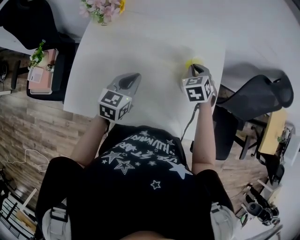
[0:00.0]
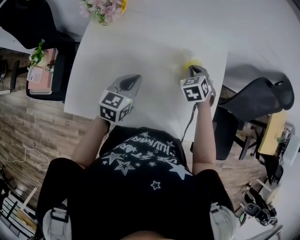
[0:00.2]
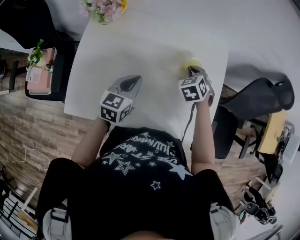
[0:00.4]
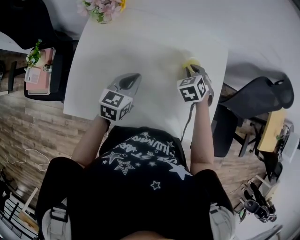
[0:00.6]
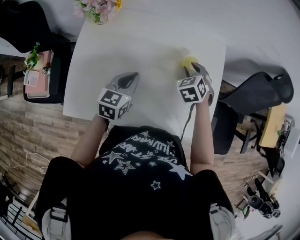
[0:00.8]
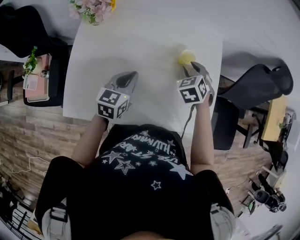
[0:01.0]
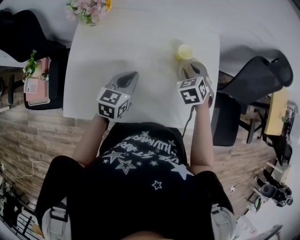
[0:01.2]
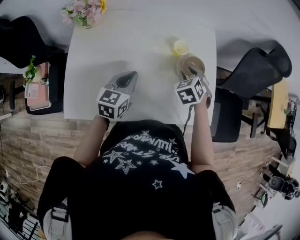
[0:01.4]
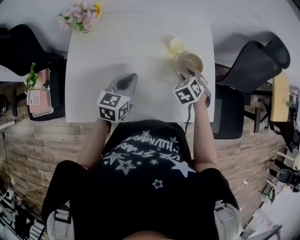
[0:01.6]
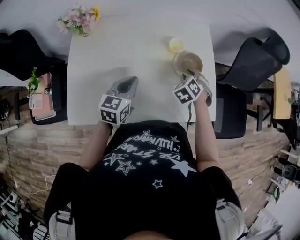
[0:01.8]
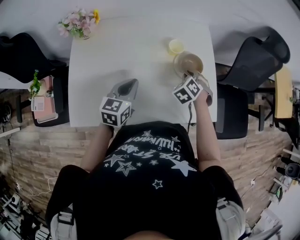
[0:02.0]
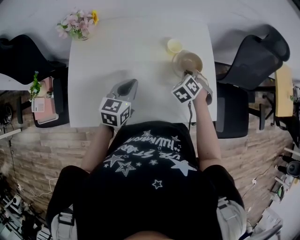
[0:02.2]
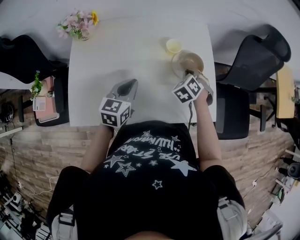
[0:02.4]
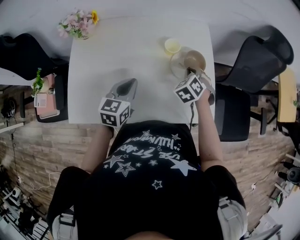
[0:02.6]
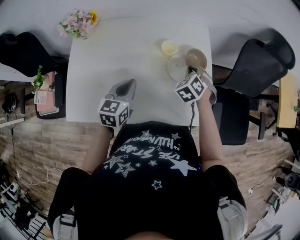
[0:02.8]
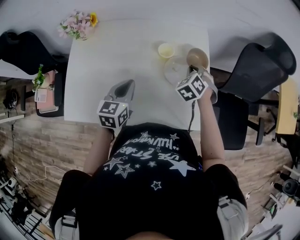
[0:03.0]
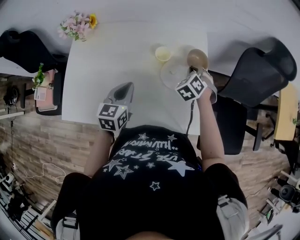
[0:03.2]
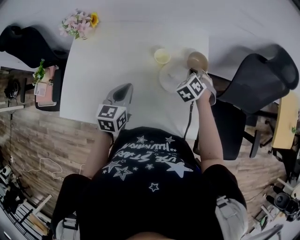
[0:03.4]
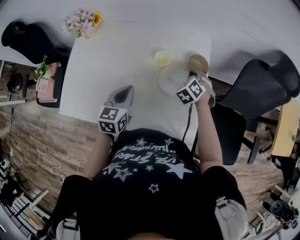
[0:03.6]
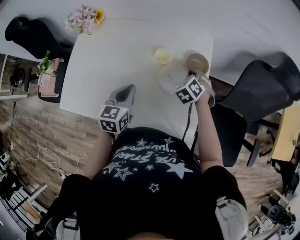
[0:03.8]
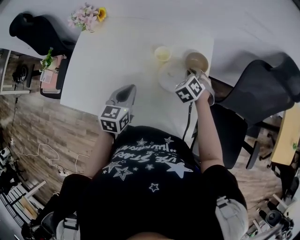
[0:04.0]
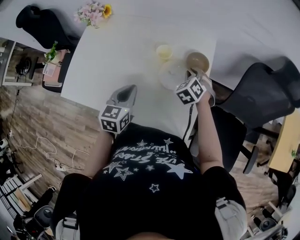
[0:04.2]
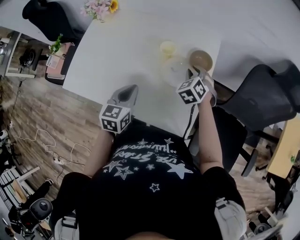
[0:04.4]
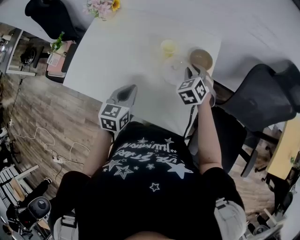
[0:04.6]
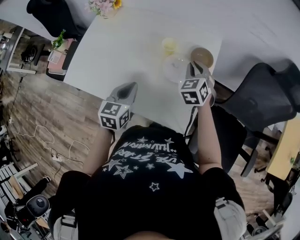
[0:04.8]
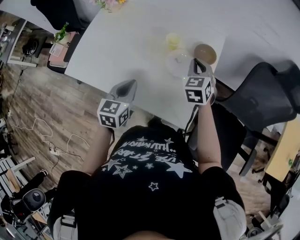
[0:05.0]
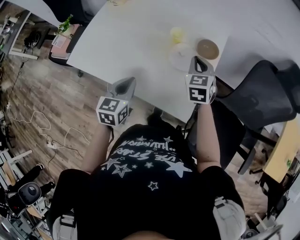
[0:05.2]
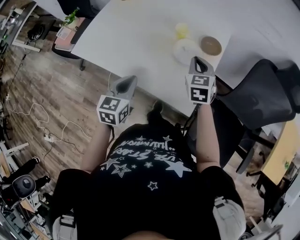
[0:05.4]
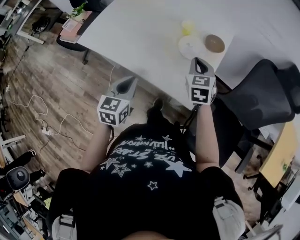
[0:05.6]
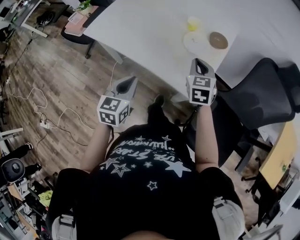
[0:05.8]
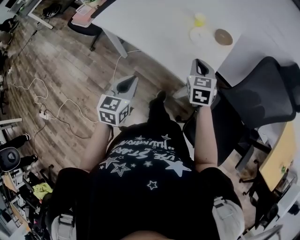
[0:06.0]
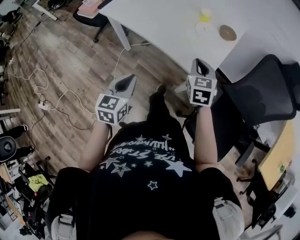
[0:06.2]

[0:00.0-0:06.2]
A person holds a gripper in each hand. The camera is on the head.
0:00.0 to 0:01.6: The right gripper travels backward, to the right and downward by some 10 cm, and opens its fingers.
0:01.6 to 0:03.2: The left gripper heads to the right, covering some 5 cm; the right gripper moves forward and to the right, approximately 10 cm, and closes its fingers.
0:03.2 to 0:04.6: The right gripper turns by about 20 degrees; the left gripper goes approximately 10 cm backward and to the right.
0:04.6 to 0:06.2: The two grippers go approximately 30 cm backward. The right gripper changes its angle by approximately 30 degrees, and closes up.

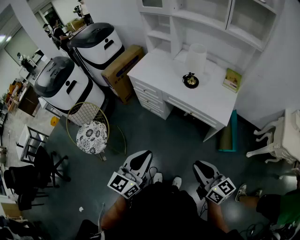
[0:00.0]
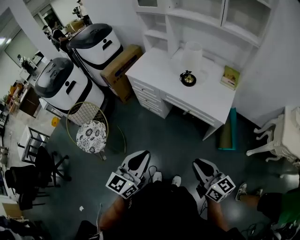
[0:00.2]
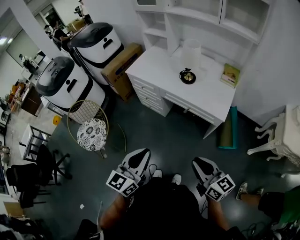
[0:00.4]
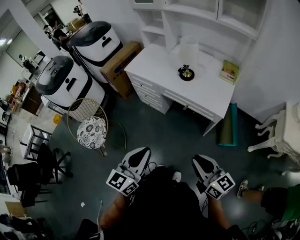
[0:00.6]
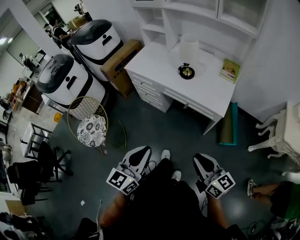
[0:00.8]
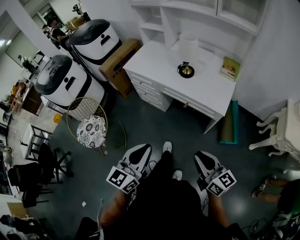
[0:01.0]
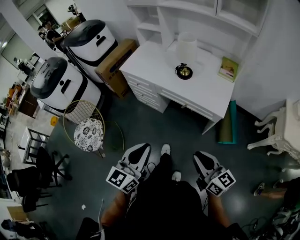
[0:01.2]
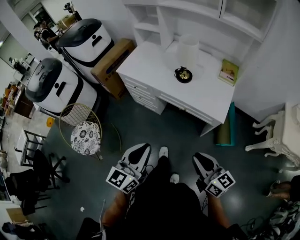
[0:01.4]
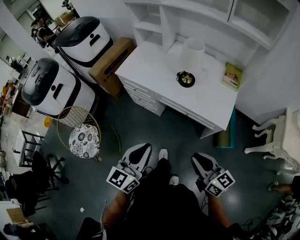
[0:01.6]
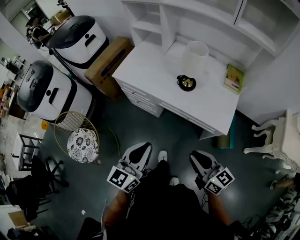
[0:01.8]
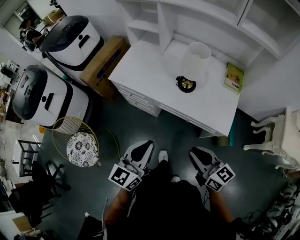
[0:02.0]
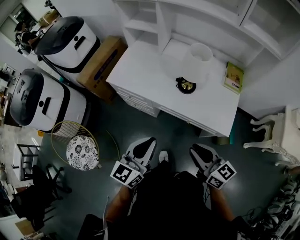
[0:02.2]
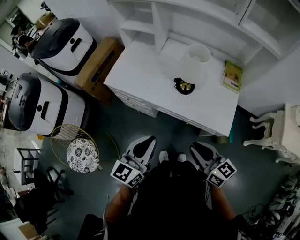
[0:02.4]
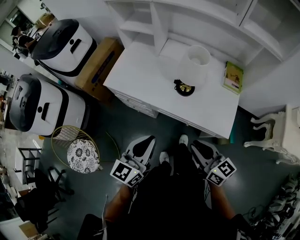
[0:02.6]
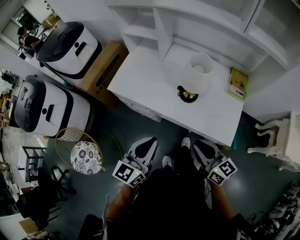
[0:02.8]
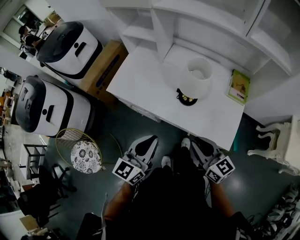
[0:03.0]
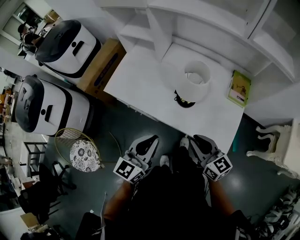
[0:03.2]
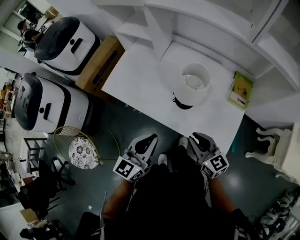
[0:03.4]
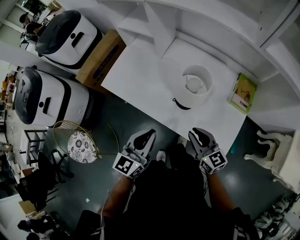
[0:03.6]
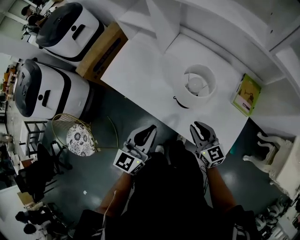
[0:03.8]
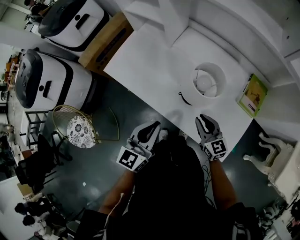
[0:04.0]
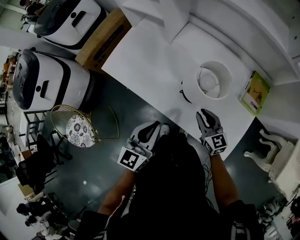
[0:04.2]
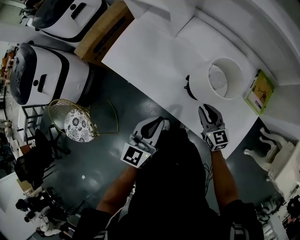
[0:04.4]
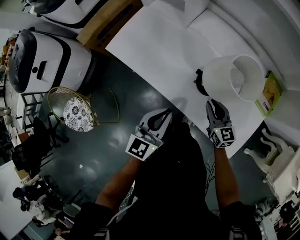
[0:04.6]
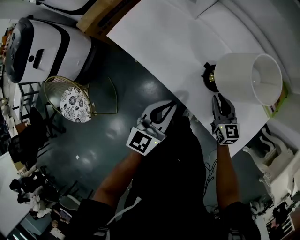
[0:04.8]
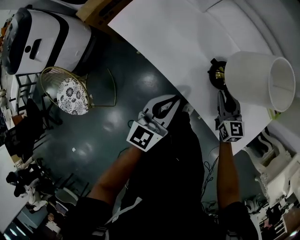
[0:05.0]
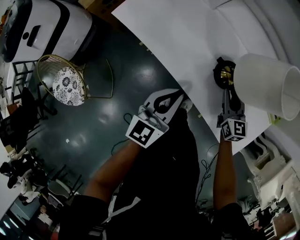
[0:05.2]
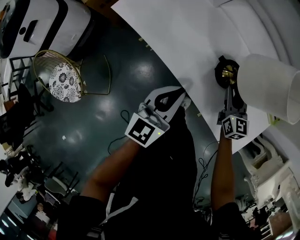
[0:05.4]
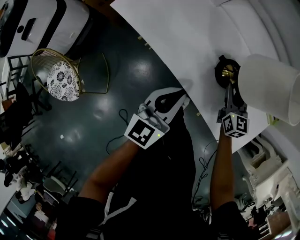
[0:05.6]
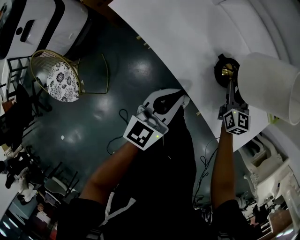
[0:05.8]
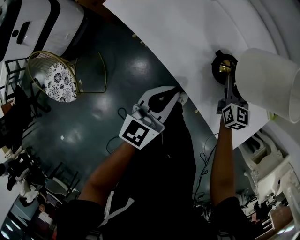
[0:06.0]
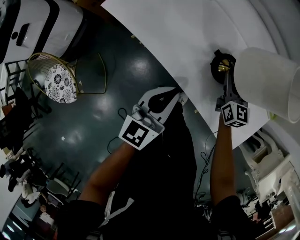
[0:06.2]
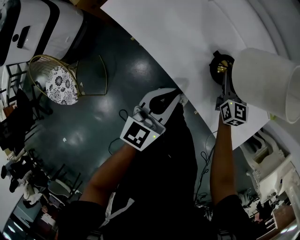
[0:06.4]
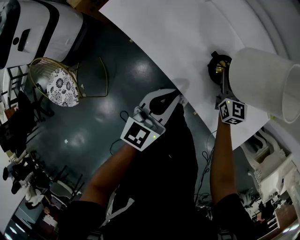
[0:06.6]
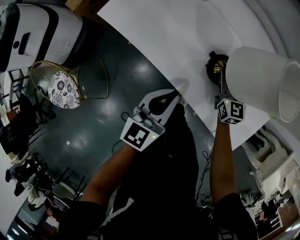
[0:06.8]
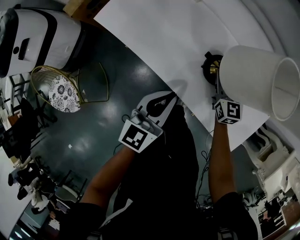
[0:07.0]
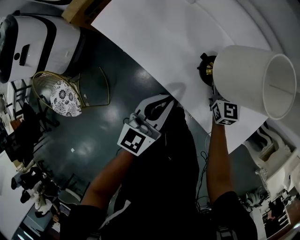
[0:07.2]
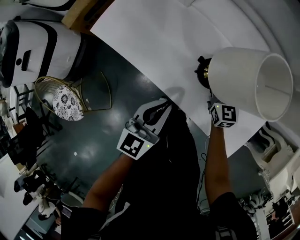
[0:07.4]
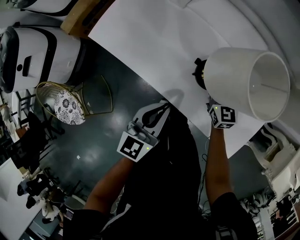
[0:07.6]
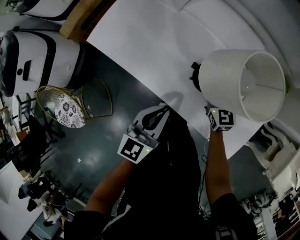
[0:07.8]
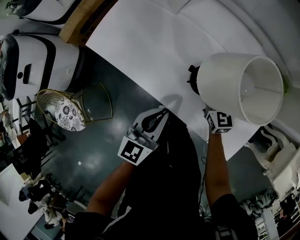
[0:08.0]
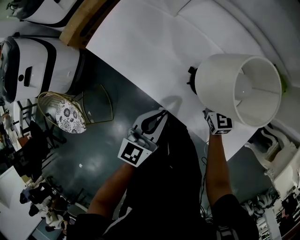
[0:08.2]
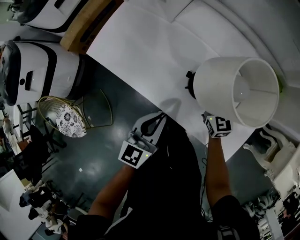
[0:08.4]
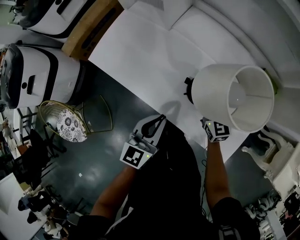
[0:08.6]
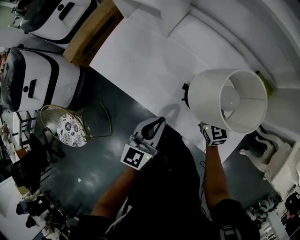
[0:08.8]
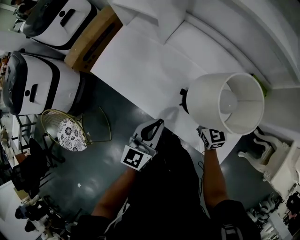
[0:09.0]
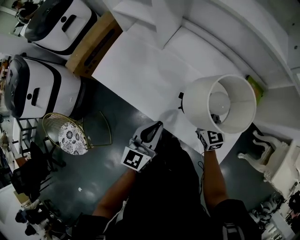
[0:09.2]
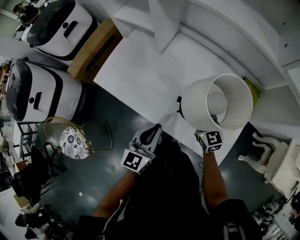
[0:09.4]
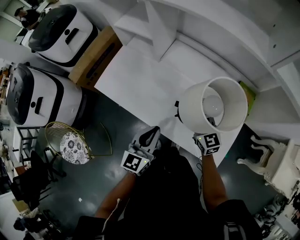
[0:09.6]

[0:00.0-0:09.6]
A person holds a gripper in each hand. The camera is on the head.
0:00.0 to 0:01.6: The grippers both shift forward by approximately 10 cm.
0:01.6 to 0:03.2: Both grippers move forward, approximately 25 cm.
0:03.2 to 0:04.8: The right gripper moves downward and forward, about 25 cm, while the left gripper moves downward and forward, roughly 15 cm.
0:04.8 to 0:06.4: The right gripper travels forward by about 10 cm.
0:06.4 to 0:08.0: There are only small adjustments of the grippers.
0:08.0 to 0:09.6: Both grippers move upward, some 10 cm.

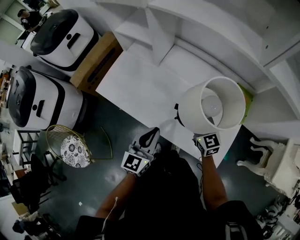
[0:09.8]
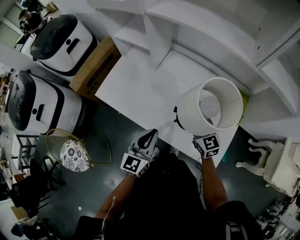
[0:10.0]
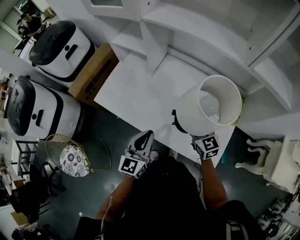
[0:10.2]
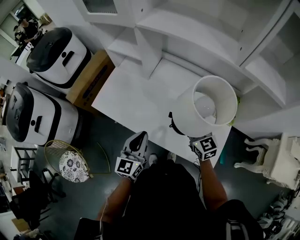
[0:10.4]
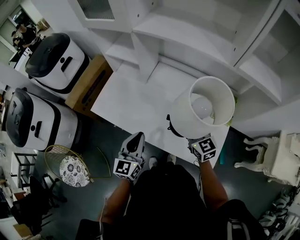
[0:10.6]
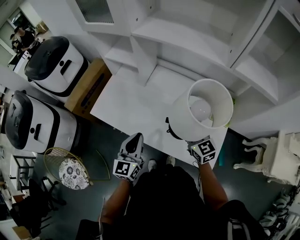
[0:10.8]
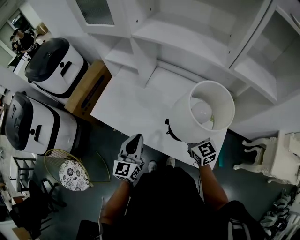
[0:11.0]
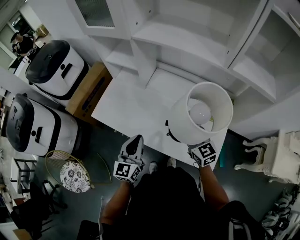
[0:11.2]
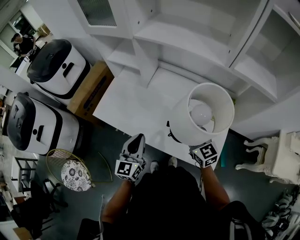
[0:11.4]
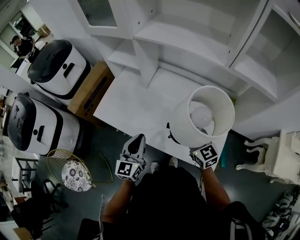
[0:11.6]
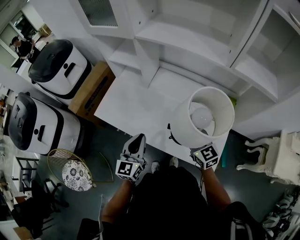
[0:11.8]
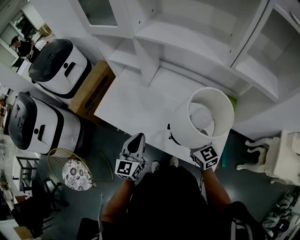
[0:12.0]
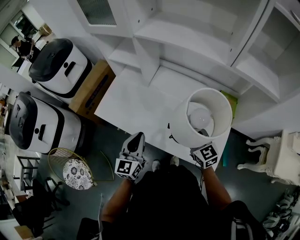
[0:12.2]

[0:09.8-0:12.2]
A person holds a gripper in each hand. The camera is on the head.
0:09.8 to 0:11.0: The right gripper goes about 5 cm upward. Meanwhile the left gripper shifts by approximately 5 cm.
0:11.0 to 0:12.2: The grippers stay close to where they were, moving slightly.

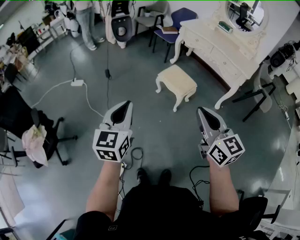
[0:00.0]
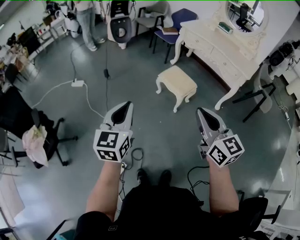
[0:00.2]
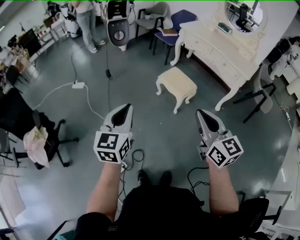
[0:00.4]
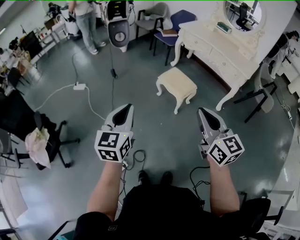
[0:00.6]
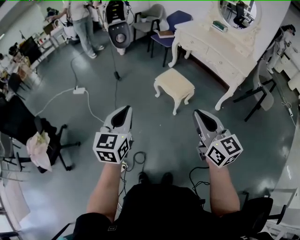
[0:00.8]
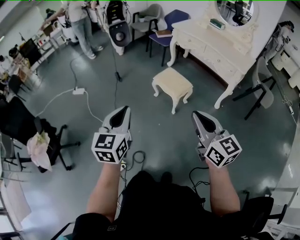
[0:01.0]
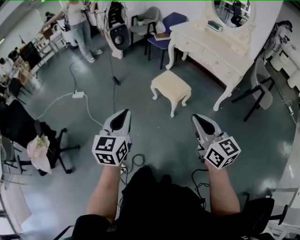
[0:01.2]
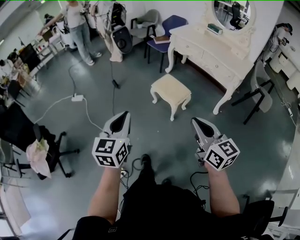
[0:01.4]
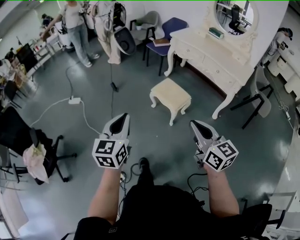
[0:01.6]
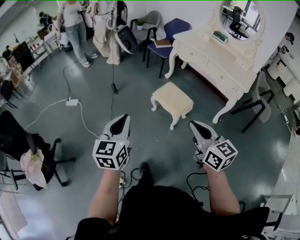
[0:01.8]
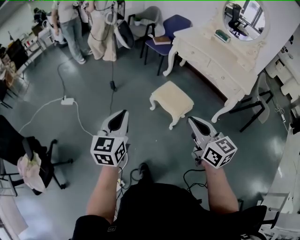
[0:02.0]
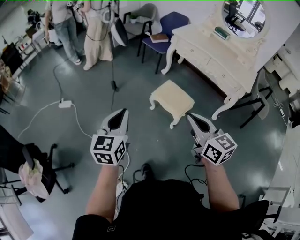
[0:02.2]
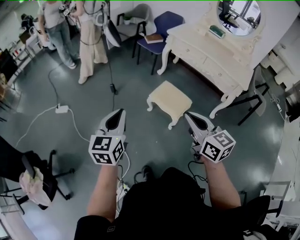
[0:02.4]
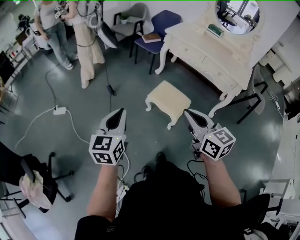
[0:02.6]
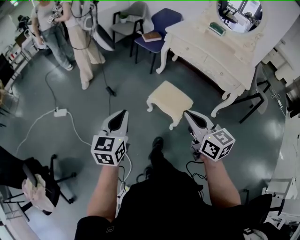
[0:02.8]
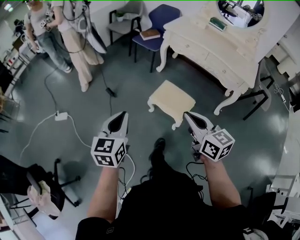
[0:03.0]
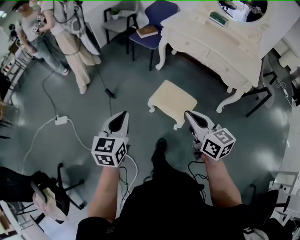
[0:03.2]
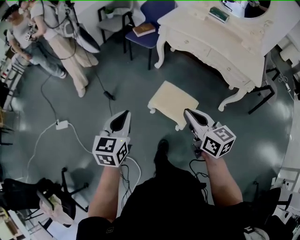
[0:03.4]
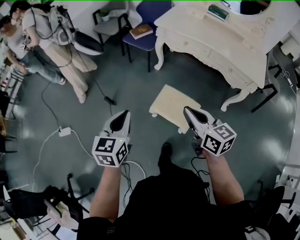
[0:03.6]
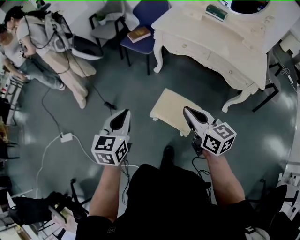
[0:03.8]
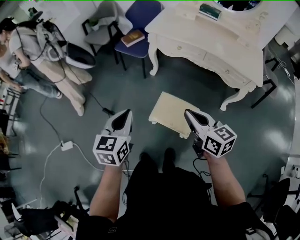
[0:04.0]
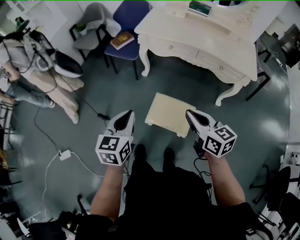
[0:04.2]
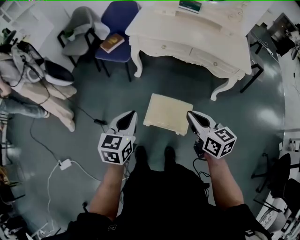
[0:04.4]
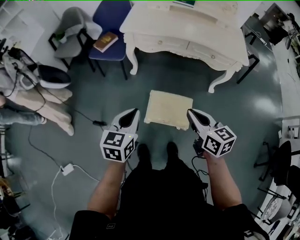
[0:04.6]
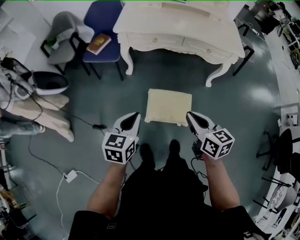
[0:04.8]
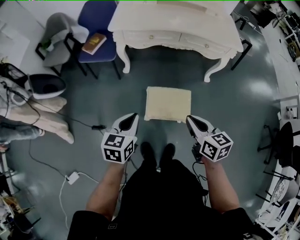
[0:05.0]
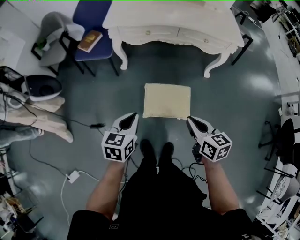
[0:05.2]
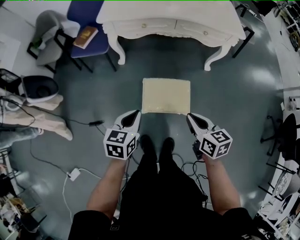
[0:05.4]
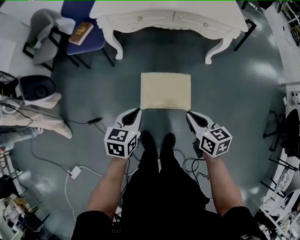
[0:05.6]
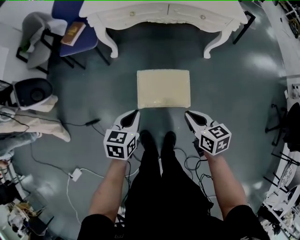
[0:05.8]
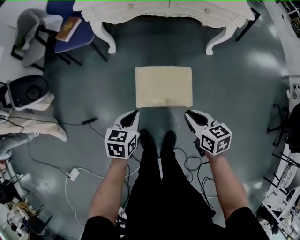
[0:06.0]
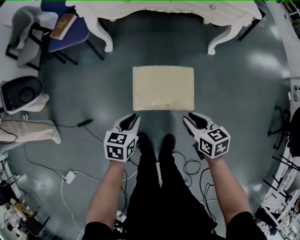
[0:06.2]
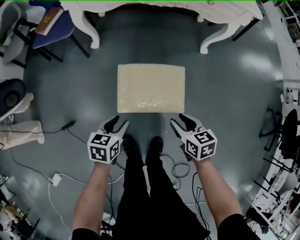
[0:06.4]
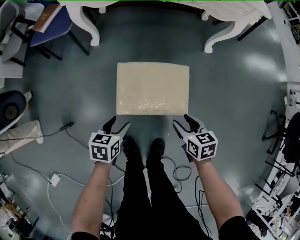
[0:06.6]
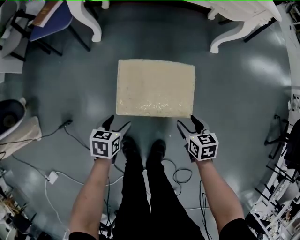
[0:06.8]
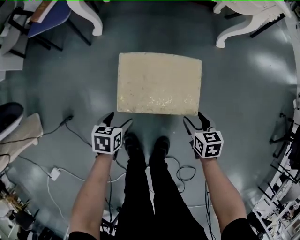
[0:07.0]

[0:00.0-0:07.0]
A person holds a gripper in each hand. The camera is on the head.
0:00.0 to 0:01.4: Both grippers move to the right, some 10 cm.
0:01.4 to 0:02.8: Both grippers move forward, approximately 30 cm.
0:02.8 to 0:04.2: Both grippers travel together forward, some 30 cm. The right gripper turns by some 20 degrees, while the left gripper changes its angle by some 20 degrees.
0:04.2 to 0:05.6: The grippers both shift downward by approximately 15 cm. The left gripper rotates roughly 30 degrees; the right gripper swivels about 30 degrees.
0:05.6 to 0:07.0: The two grippers go about 35 cm downward. The right gripper rotates about 20 degrees, and opens. Meanwhile the left gripper changes its angle by roughly 20 degrees, and opens.
